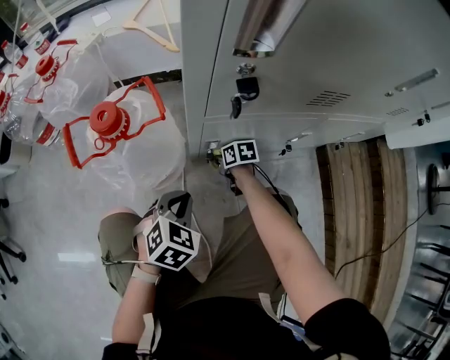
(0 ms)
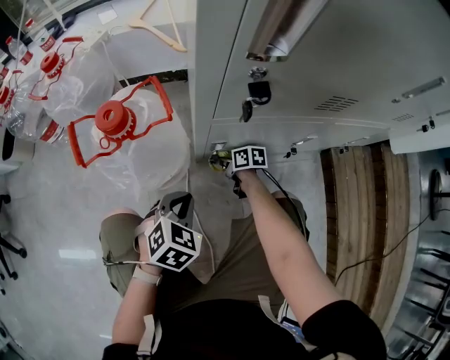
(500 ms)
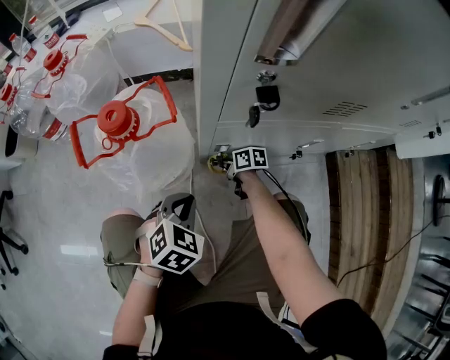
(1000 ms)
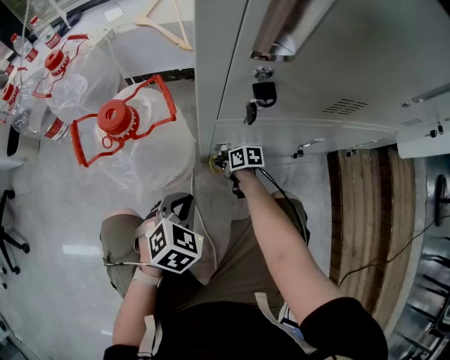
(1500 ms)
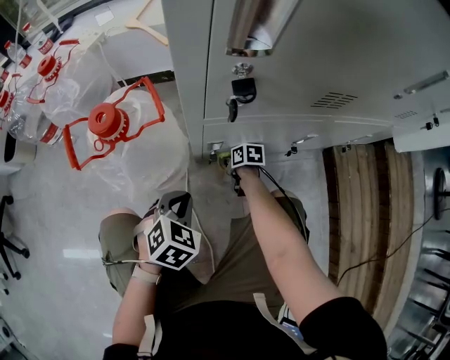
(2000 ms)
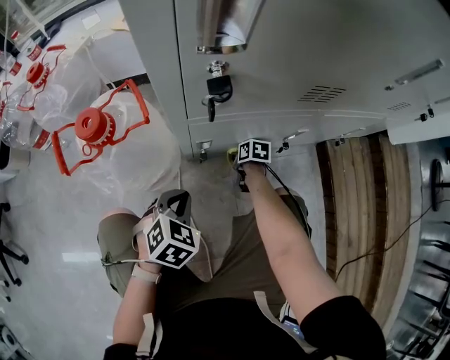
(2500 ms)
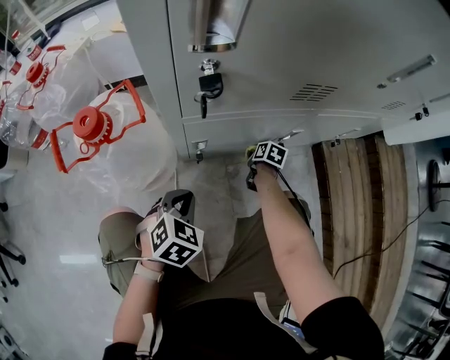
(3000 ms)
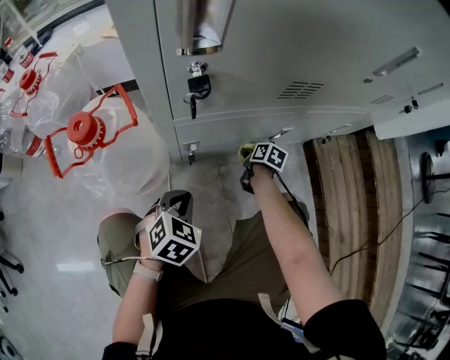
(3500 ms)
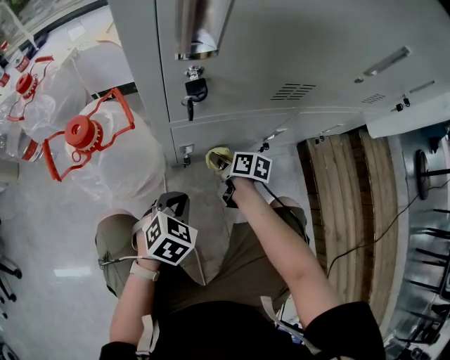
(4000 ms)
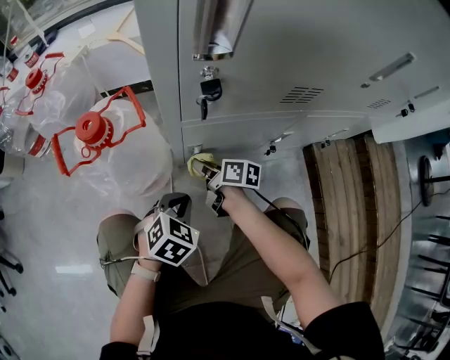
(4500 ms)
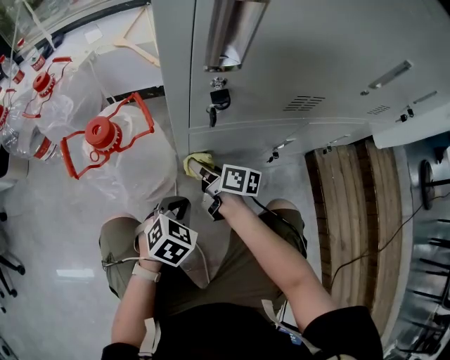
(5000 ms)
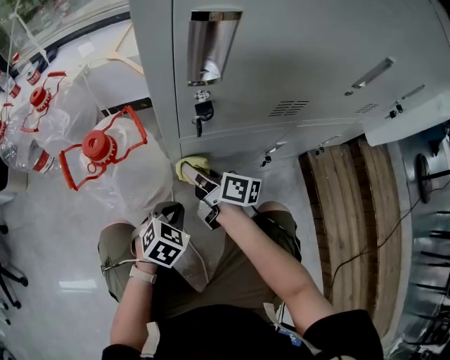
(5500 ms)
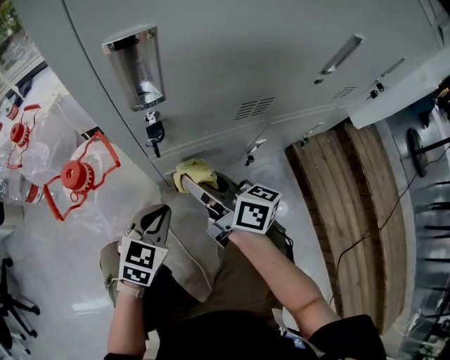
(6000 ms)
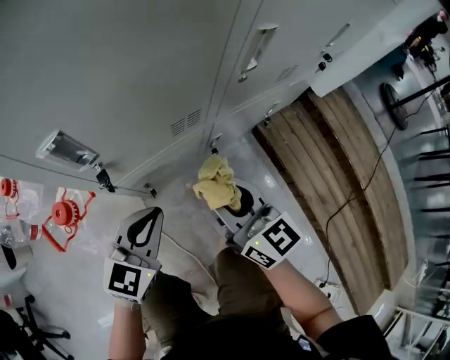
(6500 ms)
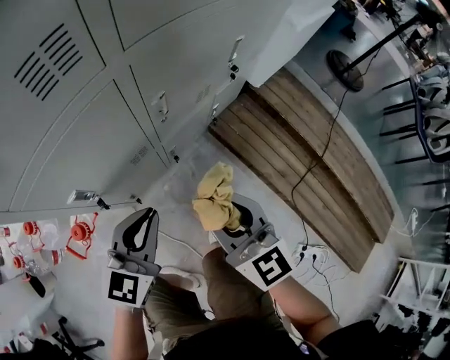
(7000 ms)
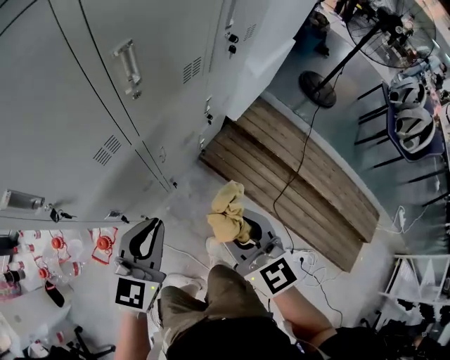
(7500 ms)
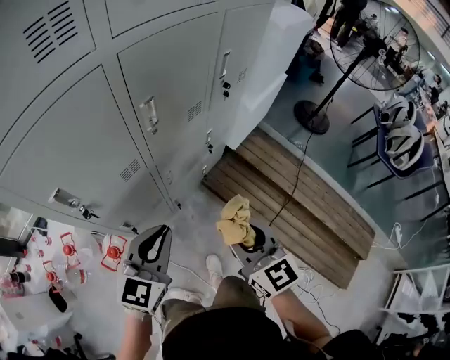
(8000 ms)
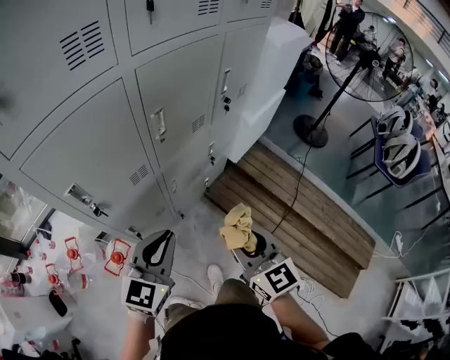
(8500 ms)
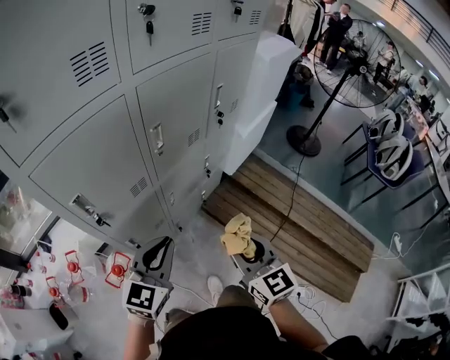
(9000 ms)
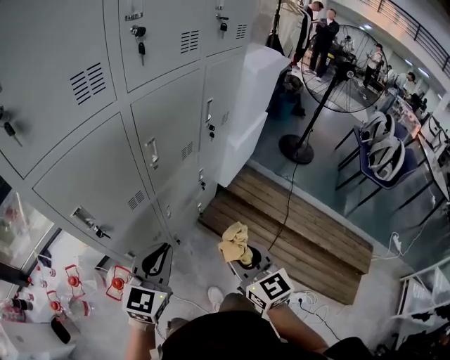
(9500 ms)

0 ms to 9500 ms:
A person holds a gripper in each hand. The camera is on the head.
0 ms to 2000 ms: The grippers move only a little.
2000 ms to 4000 ms: The right gripper travels upward by roughly 15 cm, travels to the right and back again, roughly 15 cm each way, and rotates about 30 degrees. The left gripper is displaced to the right by about 5 cm.
4000 ms to 5500 ms: The right gripper travels upward and to the left by some 20 cm, and rotates about 30 degrees.
5500 ms to 7500 ms: Both grippers move upward, some 40 cm. The right gripper changes its angle by some 70 degrees. The left gripper angles its fingers upward, by roughly 40 degrees.
7500 ms to 9500 ms: The left gripper moves some 5 cm. The right gripper shifts some 5 cm backward.

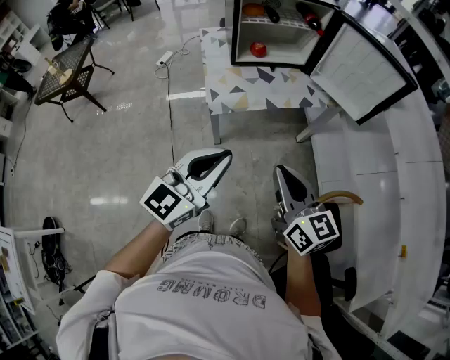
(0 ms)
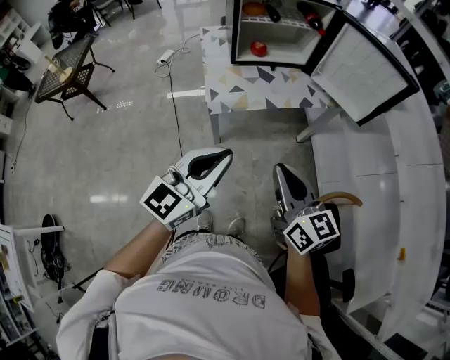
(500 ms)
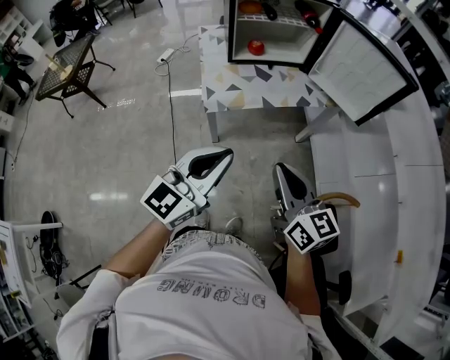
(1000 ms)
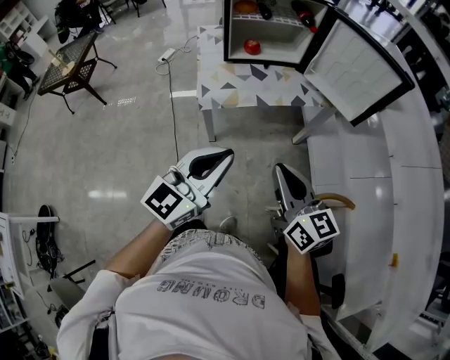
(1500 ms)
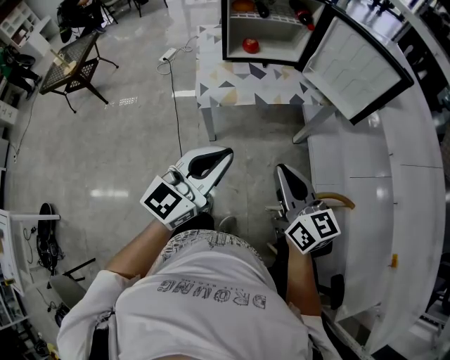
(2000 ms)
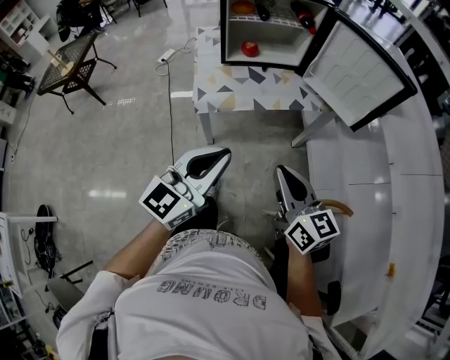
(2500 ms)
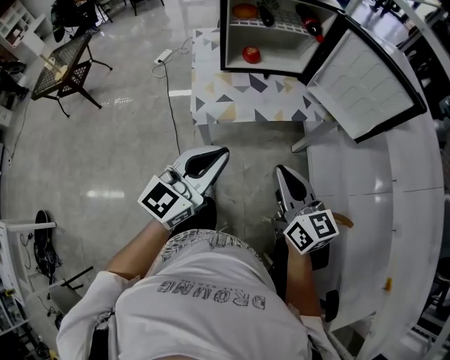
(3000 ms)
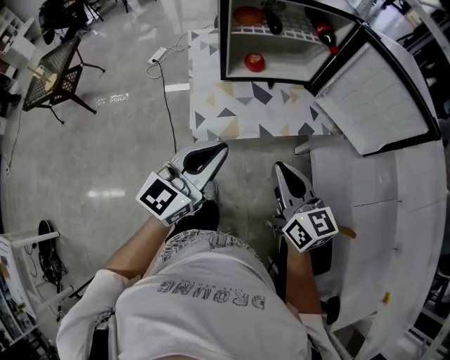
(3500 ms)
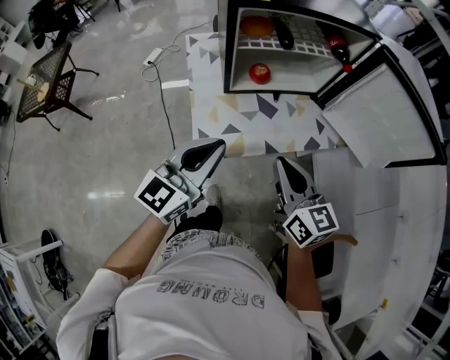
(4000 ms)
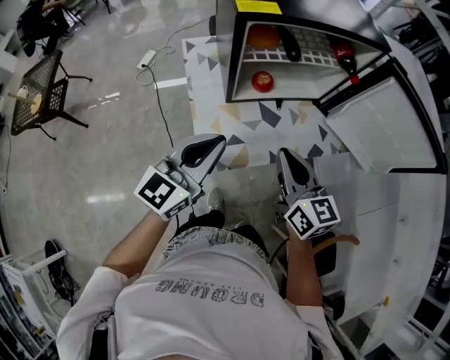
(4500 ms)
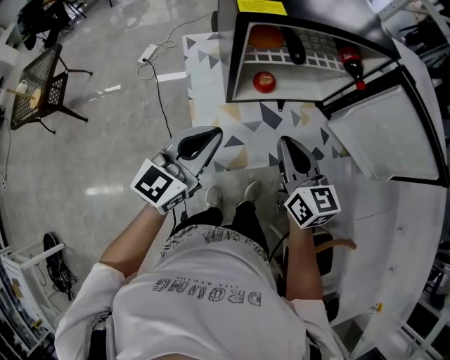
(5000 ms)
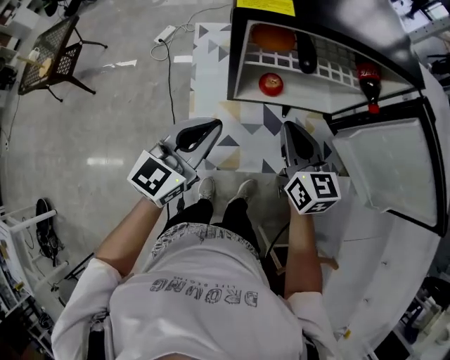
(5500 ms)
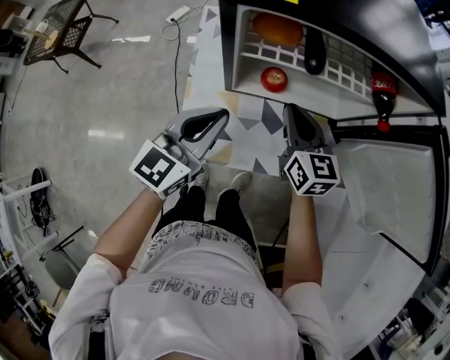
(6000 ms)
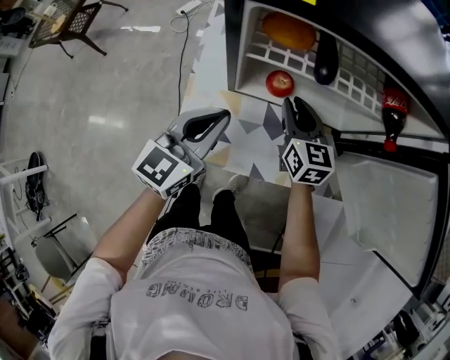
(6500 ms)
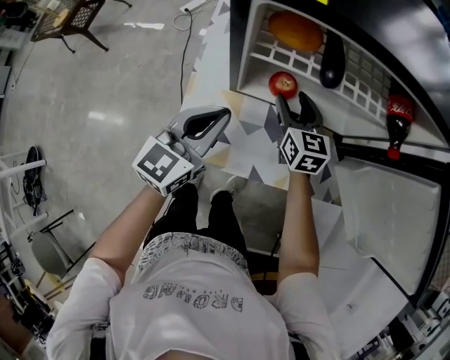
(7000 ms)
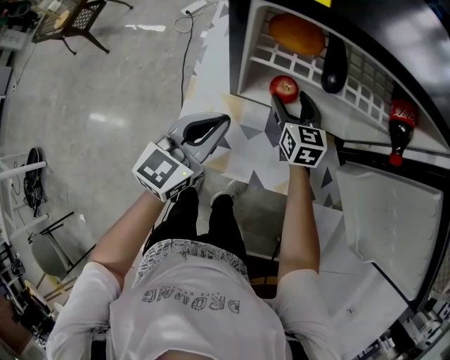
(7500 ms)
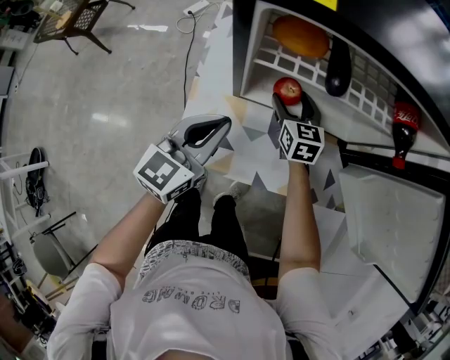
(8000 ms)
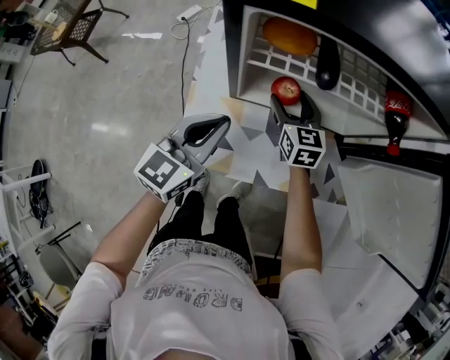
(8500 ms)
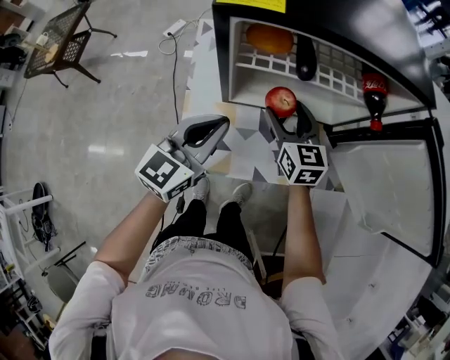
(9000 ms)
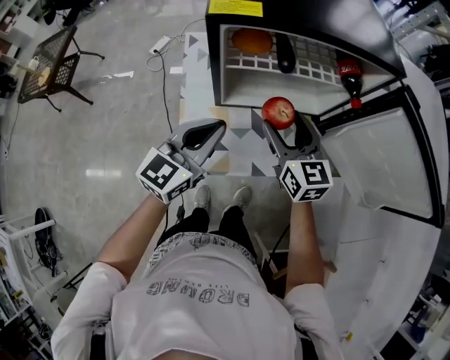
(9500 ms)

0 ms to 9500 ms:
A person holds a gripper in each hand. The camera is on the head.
0 ms to 2000 ms: Both grippers travel together to the right, about 10 cm.
2000 ms to 4000 ms: The left gripper is displaced forward and to the left by about 35 cm. The right gripper goes roughly 30 cm forward.
4000 ms to 5500 ms: The two grippers go approximately 15 cm forward.
5500 ms to 7500 ms: The left gripper moves downward, about 10 cm. The right gripper travels downward and forward by roughly 20 cm, and opens its fingers.
7500 ms to 9500 ms: The right gripper heads upward and backward, covering approximately 20 cm. Meanwhile the left gripper travels upward by about 10 cm.

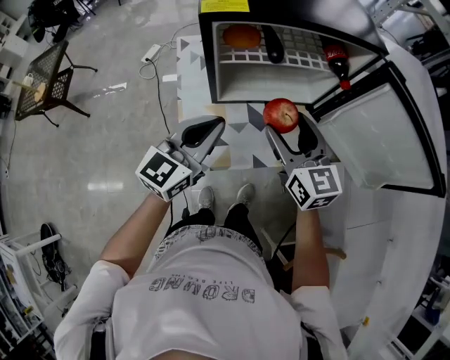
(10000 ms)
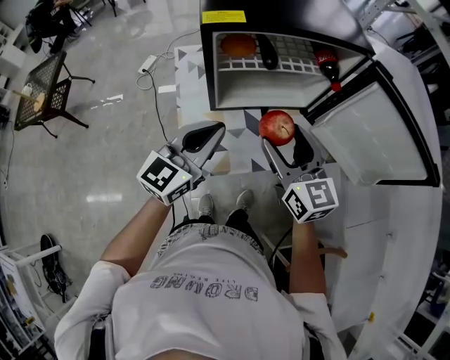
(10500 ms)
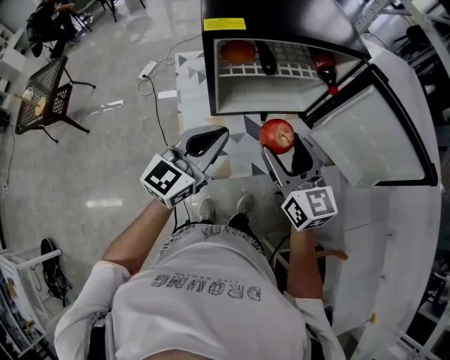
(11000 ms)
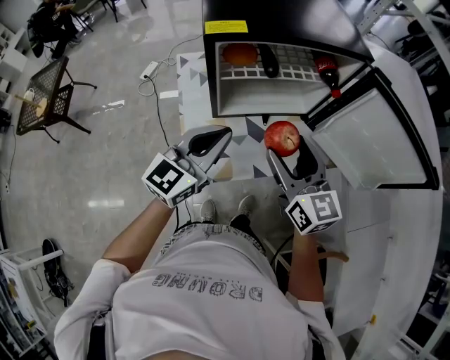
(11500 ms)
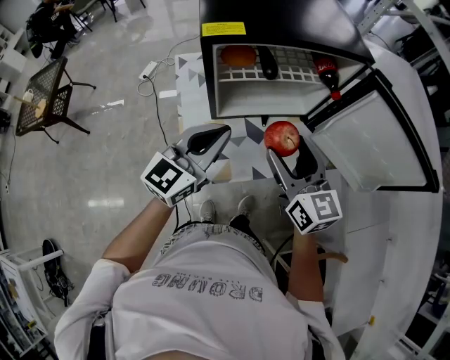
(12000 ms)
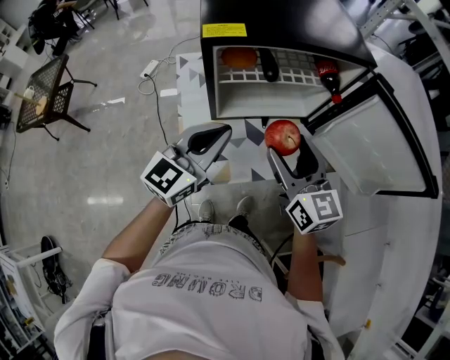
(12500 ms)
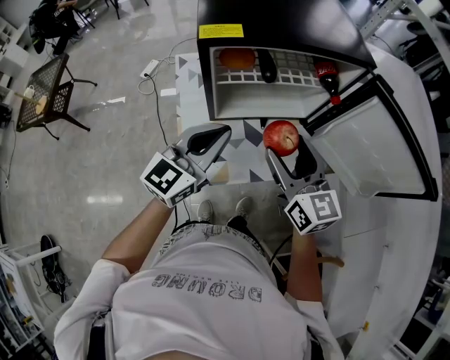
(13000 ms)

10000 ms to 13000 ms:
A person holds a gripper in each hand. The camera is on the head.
10000 ms to 11500 ms: The right gripper shifts by approximately 5 cm.
11500 ms to 13000 ms: The grippers make only small movements.

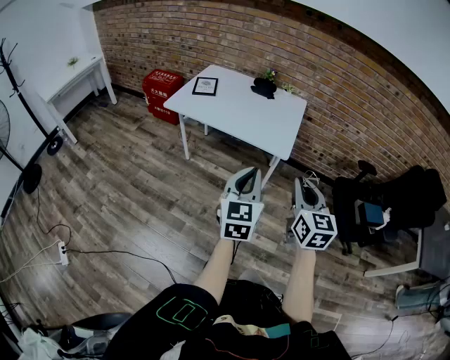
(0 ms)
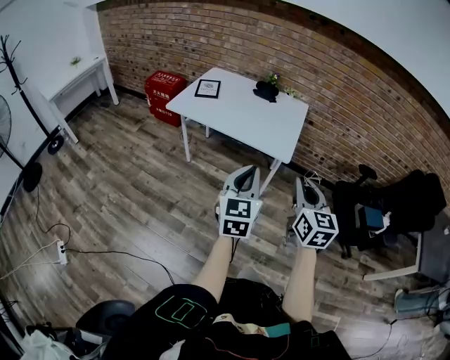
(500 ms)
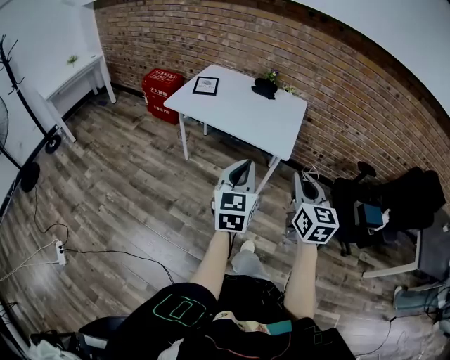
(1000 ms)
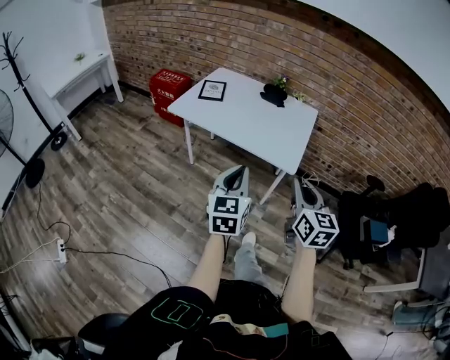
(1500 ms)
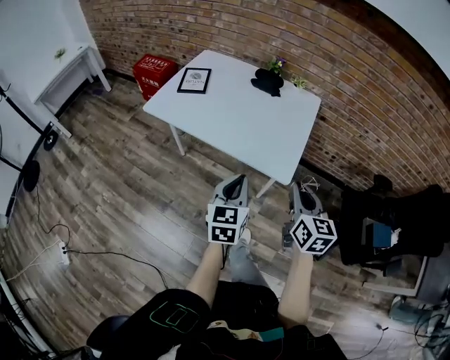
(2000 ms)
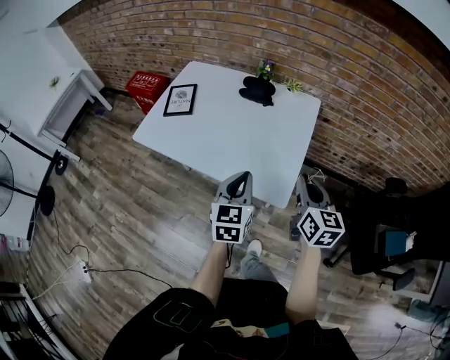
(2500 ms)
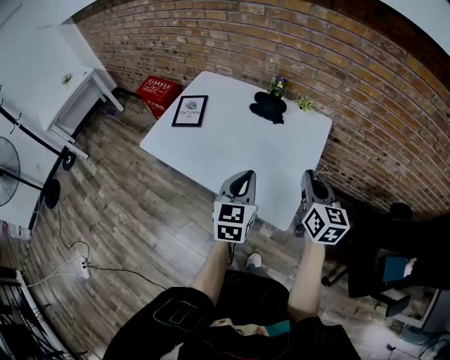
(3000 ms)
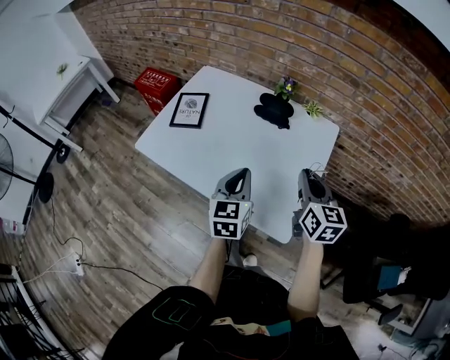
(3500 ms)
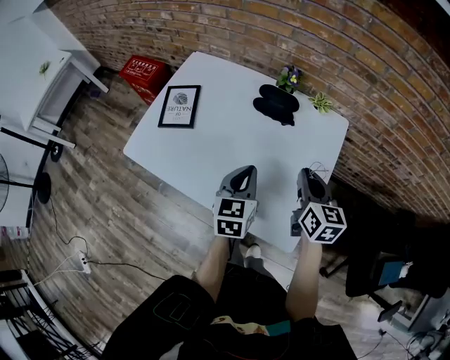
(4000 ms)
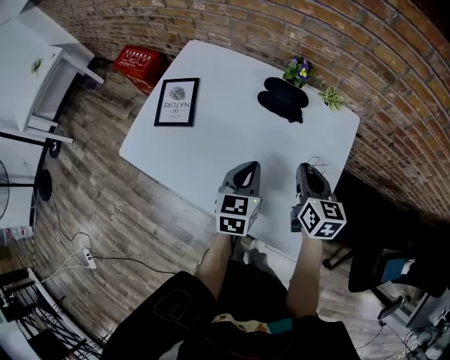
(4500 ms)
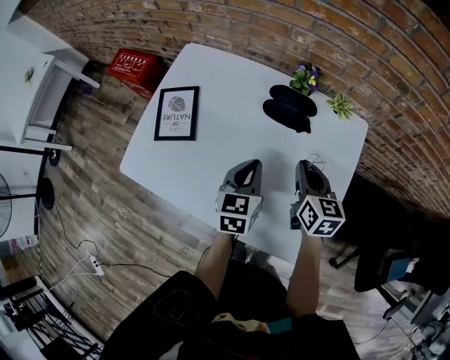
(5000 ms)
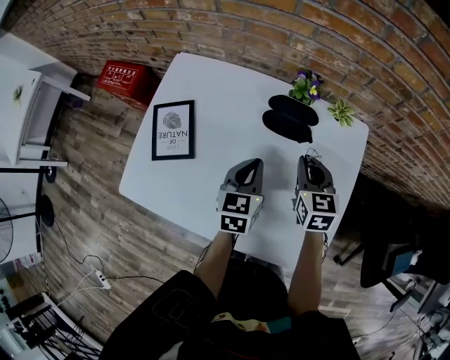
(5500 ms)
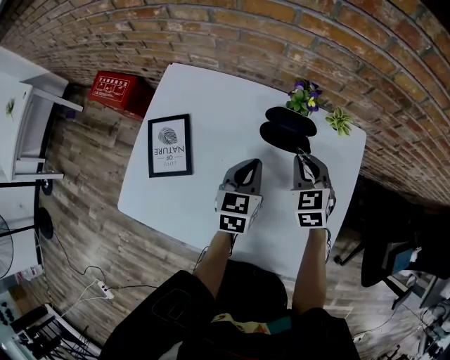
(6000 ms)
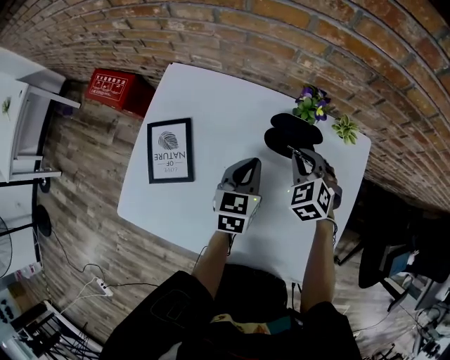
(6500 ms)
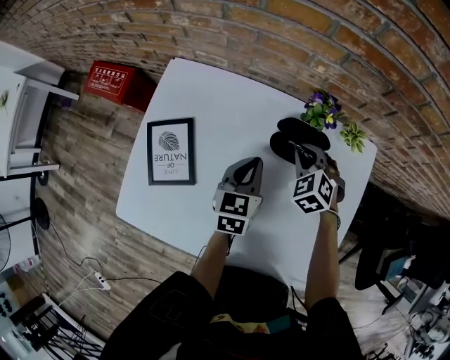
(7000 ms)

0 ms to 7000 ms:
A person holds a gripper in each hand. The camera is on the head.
0 ms to 2000 ms: The right gripper heads forward, covering roughly 25 cm; the left gripper shifts approximately 25 cm forward and downward.
2000 ms to 3500 ms: Both grippers travel together forward, some 25 cm.
3500 ms to 5000 ms: The right gripper goes approximately 20 cm forward, downward and to the left, while the left gripper shifts some 20 cm forward and downward.
5000 ms to 7000 ms: The right gripper goes about 20 cm forward, downward and to the left, and rotates around the line of its fingers by approximately 60 degrees, counterclockwise from behind. The left gripper travels forward by some 15 cm.
